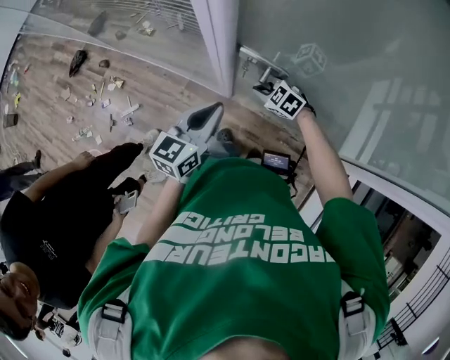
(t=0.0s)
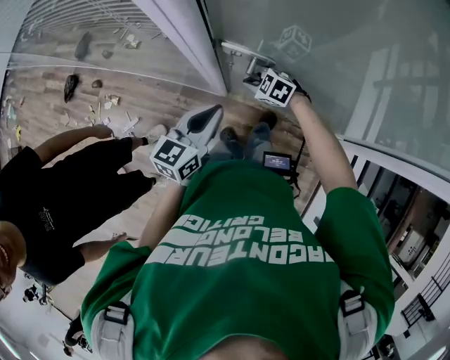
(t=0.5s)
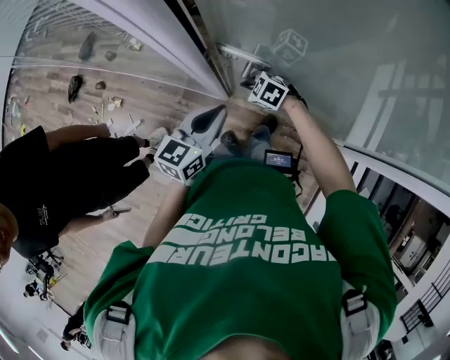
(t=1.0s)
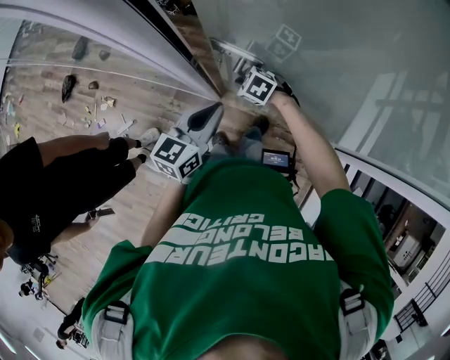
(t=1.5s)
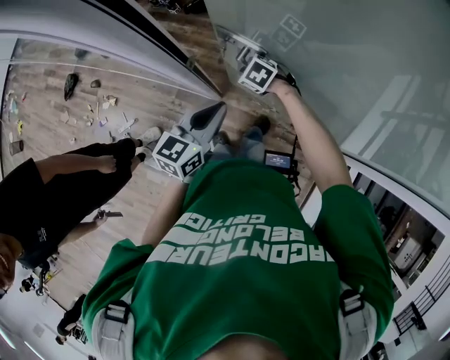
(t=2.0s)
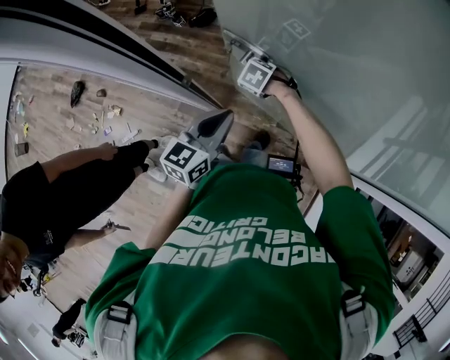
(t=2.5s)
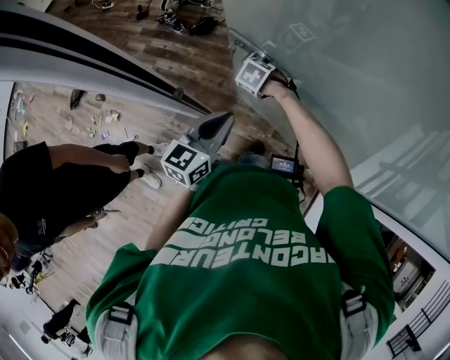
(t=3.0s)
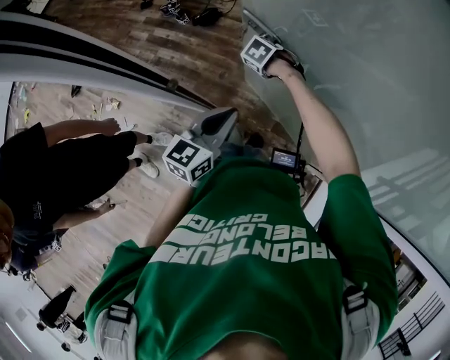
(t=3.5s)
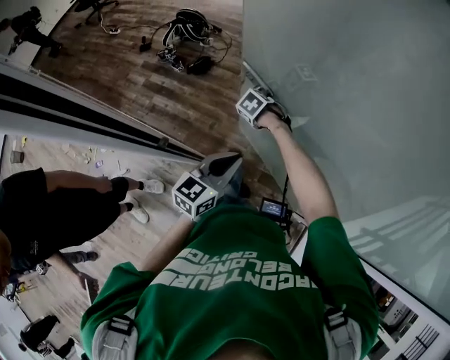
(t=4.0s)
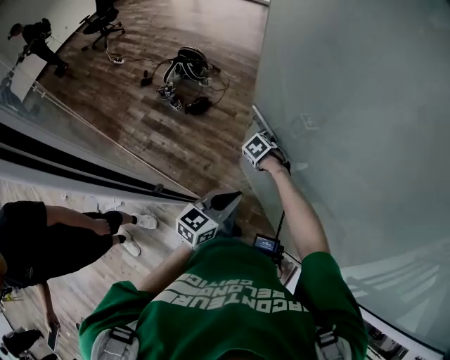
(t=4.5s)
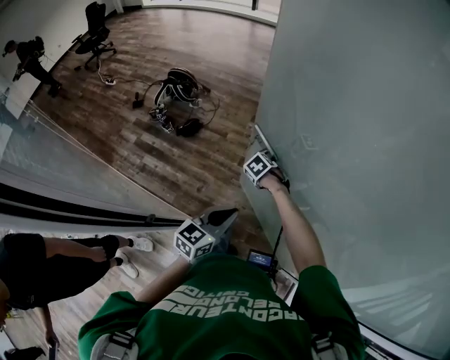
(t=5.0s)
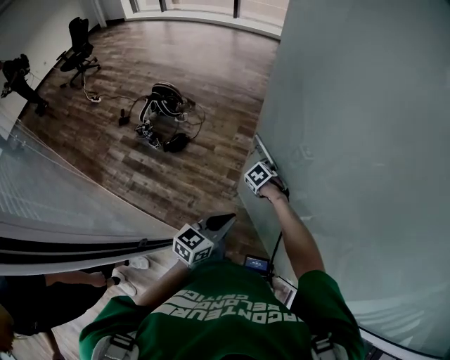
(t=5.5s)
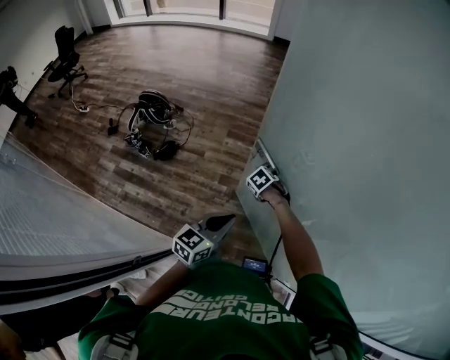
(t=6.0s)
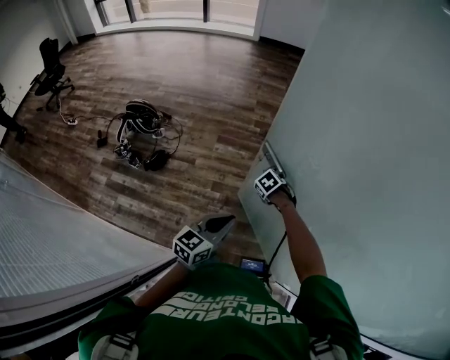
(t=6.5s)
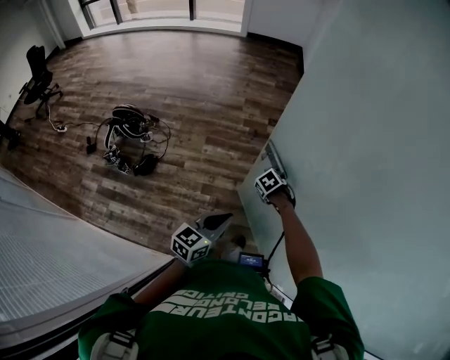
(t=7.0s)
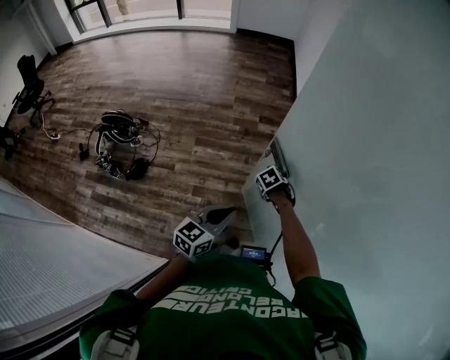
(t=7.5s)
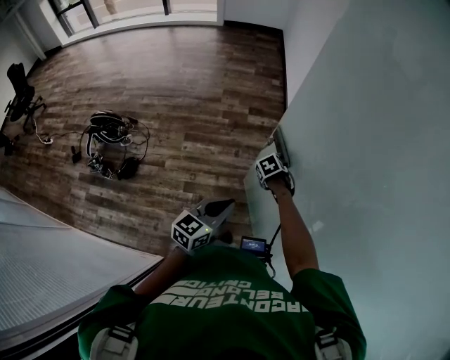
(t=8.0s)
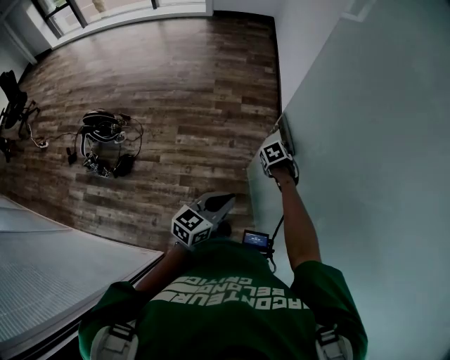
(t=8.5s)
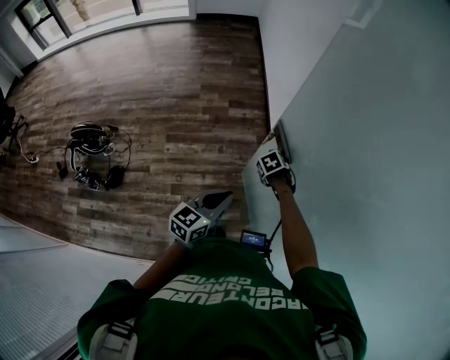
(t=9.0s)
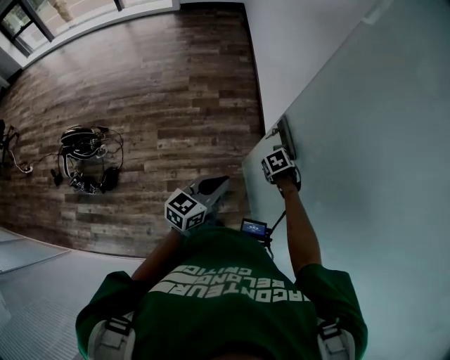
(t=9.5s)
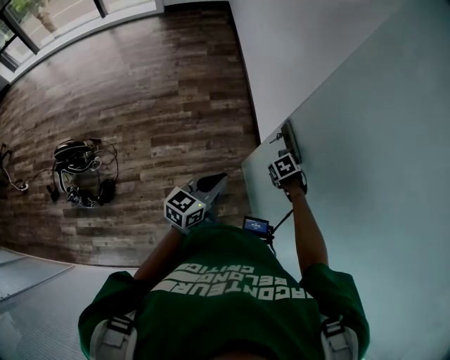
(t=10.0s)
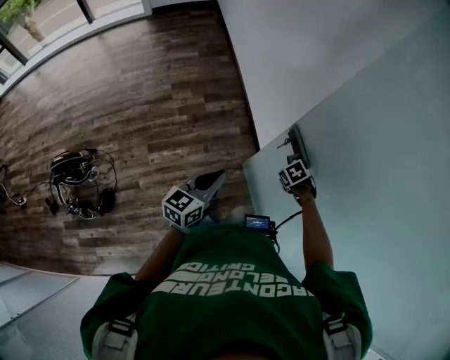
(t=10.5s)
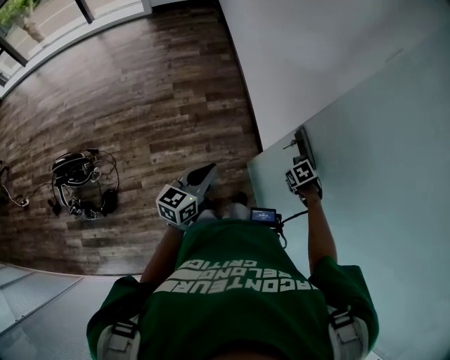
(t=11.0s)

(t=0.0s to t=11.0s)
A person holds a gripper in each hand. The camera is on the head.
t=0.0s - t=2.0s: The right gripper travels forward and to the right by about 10 cm. Meanwhile the left gripper goes about 10 cm to the right.
t=2.0s - t=3.5s: The right gripper ends up about 15 cm from where it was; the left gripper ends up some 10 cm from where it was.
t=3.5s - t=5.5s: The right gripper shifts by roughly 25 cm. The left gripper ends up roughly 20 cm from where it was.
t=5.5s - t=7.5s: The right gripper moves roughly 30 cm, and turns by roughly 30 degrees. Meanwhile the left gripper ends up approximately 25 cm from where it was.
t=7.5s - t=9.0s: The right gripper ends up roughly 15 cm from where it was. Meanwhile the left gripper moves approximately 15 cm.
t=9.0s - t=11.0s: The left gripper shifts by approximately 20 cm. Meanwhile the right gripper changes place by approximately 10 cm.

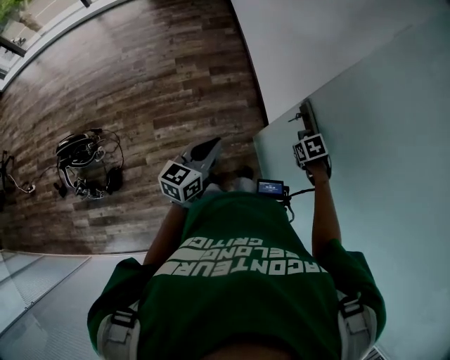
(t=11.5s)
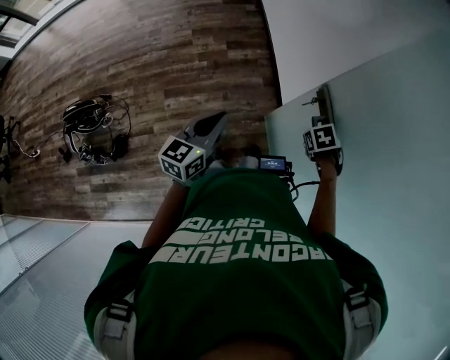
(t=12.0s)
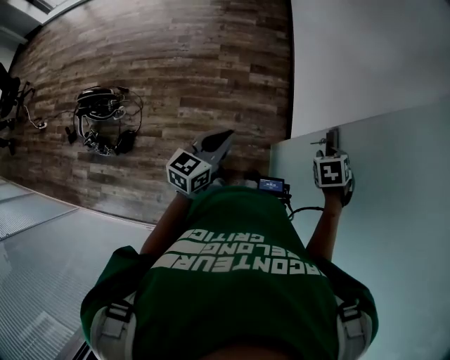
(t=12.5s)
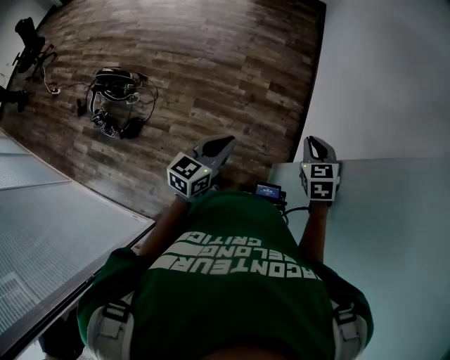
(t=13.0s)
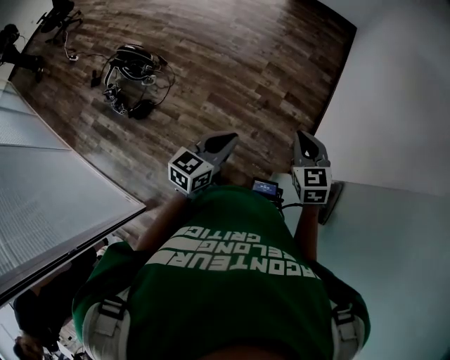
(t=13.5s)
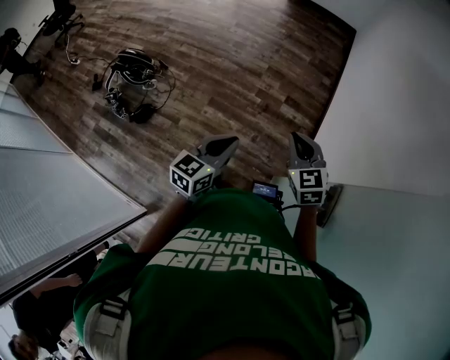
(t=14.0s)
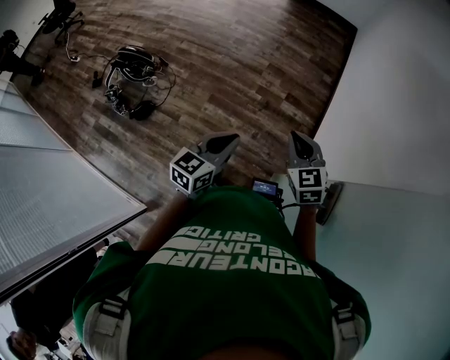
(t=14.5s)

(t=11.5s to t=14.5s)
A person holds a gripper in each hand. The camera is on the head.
t=11.5s - t=13.0s: The left gripper ends up about 5 cm from where it was, and swivels roughly 20 degrees; the right gripper changes place by some 25 cm, tips its fingers upward by some 40 degrees, and opens and closes again.
t=13.0s - t=14.5s: The right gripper shifts roughly 10 cm to the left, and turns by some 20 degrees.

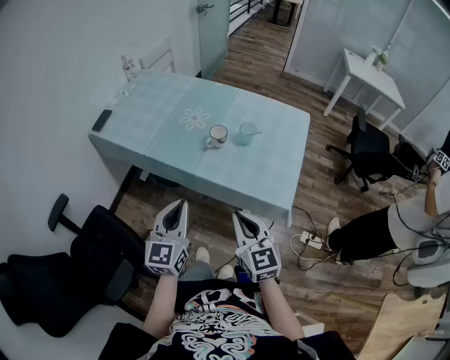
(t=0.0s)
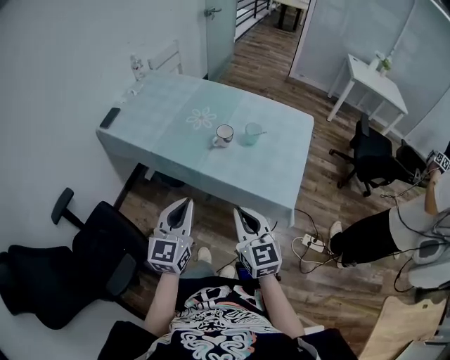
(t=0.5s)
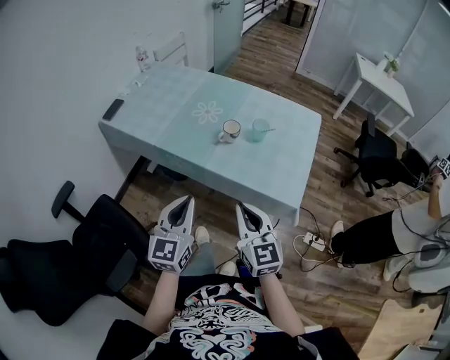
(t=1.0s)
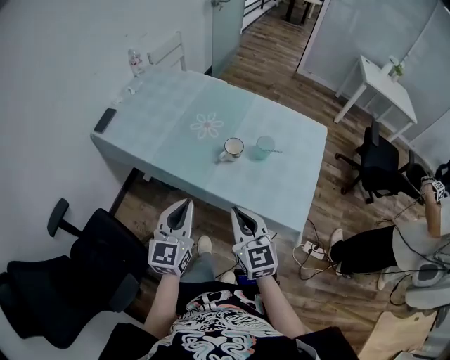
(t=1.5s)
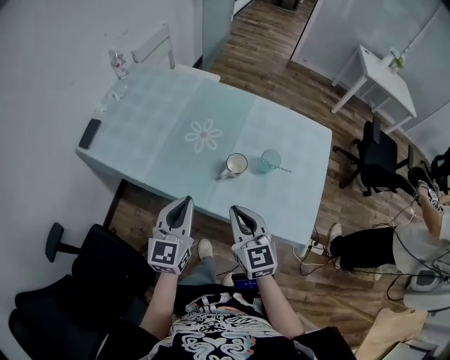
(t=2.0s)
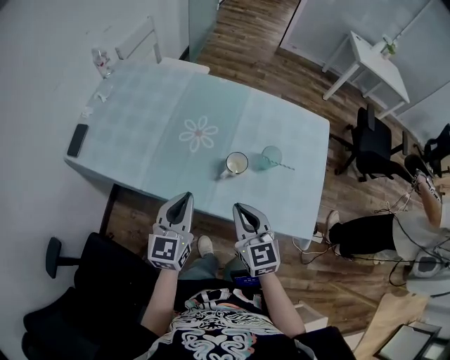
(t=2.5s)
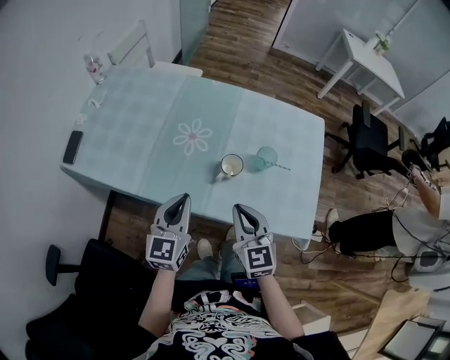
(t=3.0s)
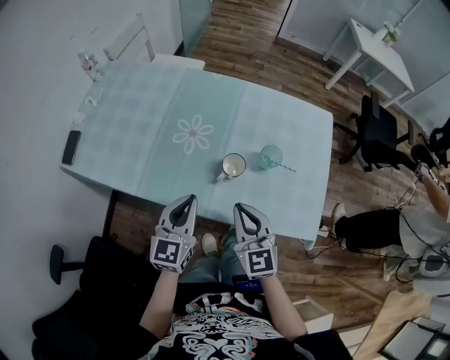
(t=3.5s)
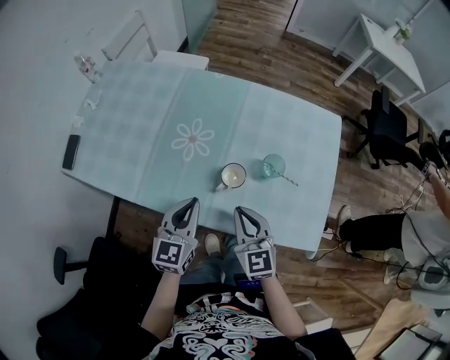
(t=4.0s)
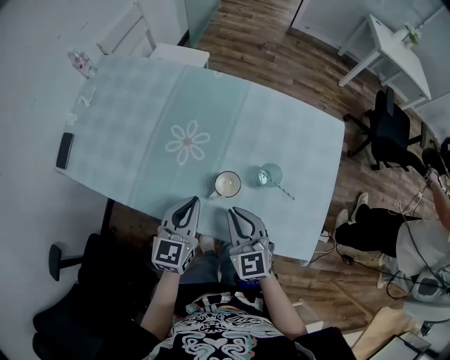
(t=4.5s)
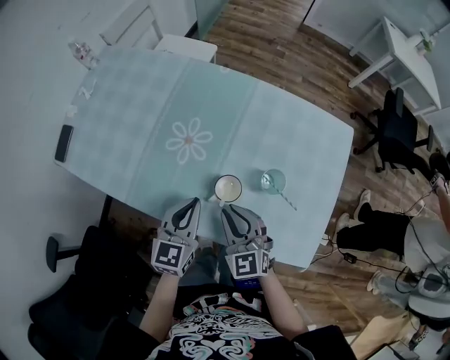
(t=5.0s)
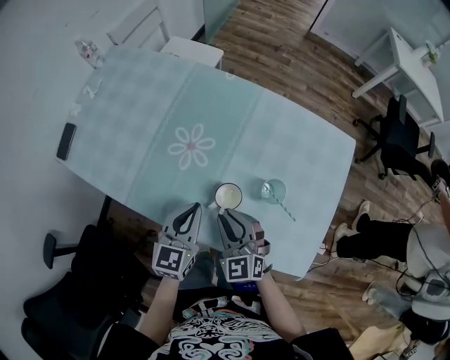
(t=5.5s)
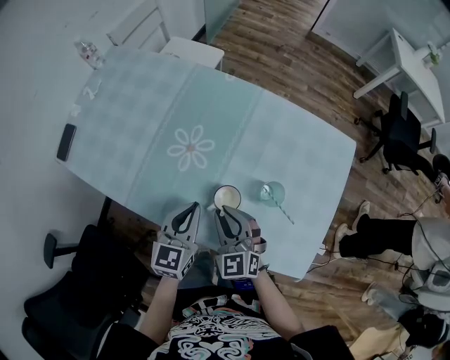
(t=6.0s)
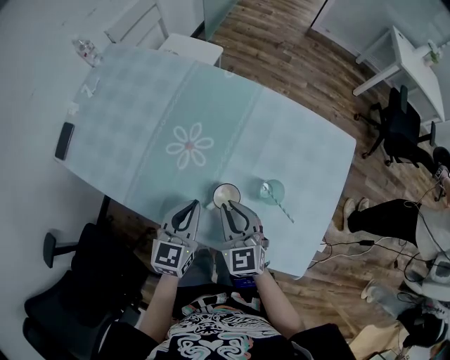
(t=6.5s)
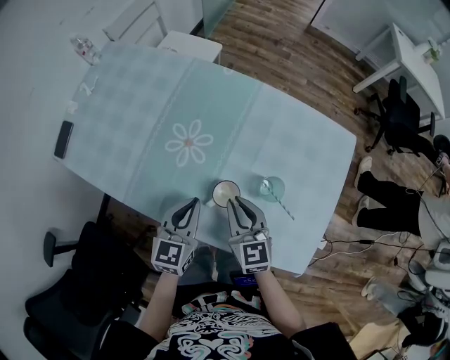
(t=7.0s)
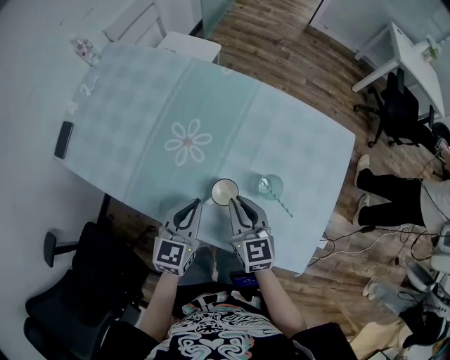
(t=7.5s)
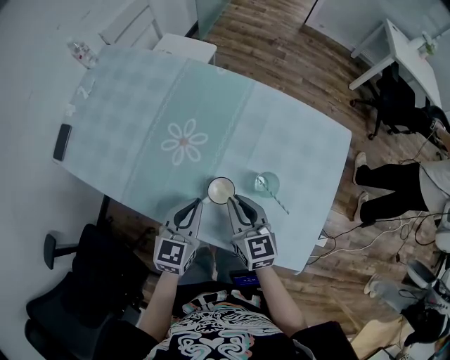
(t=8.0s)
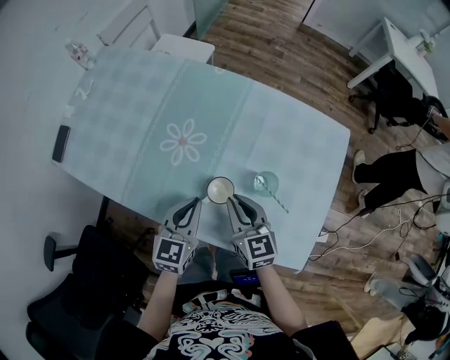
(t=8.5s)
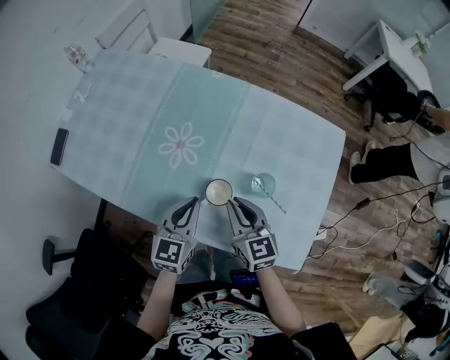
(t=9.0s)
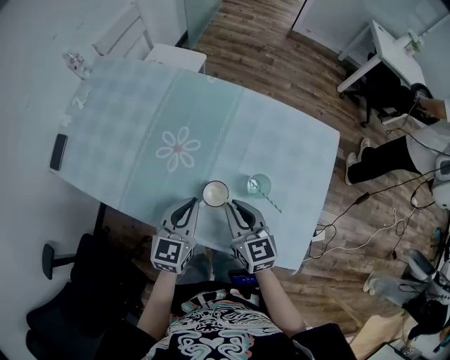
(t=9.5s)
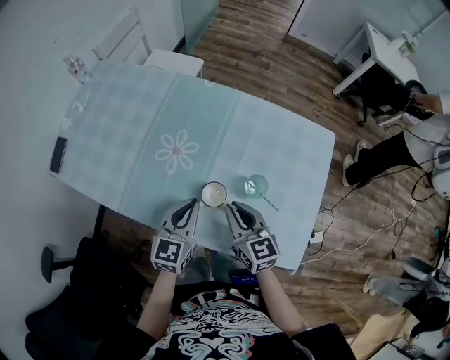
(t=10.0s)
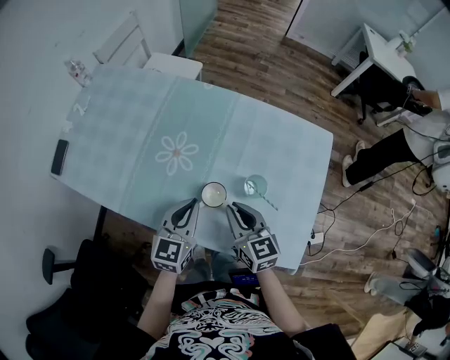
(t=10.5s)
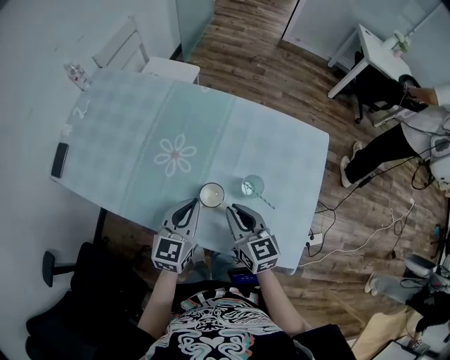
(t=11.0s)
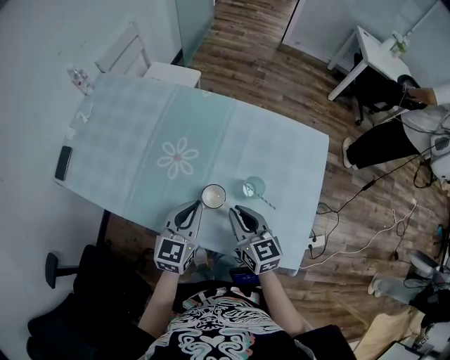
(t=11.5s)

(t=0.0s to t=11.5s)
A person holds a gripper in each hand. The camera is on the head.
t=0.0s - t=2.0s: The two grippers go roughly 20 cm forward.
t=2.0s - t=4.0s: Both grippers move forward and downward, some 10 cm.
t=4.0s - t=6.0s: The right gripper travels forward by about 5 cm, and rotates some 20 degrees; the left gripper ends up about 5 cm from where it was.
t=6.0s - t=7.5s: The right gripper heads to the right, covering about 5 cm, and rotates roughly 30 degrees.
t=7.5s - t=11.5s: The grippers make only small movements.

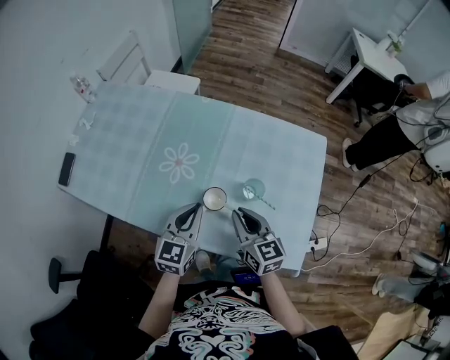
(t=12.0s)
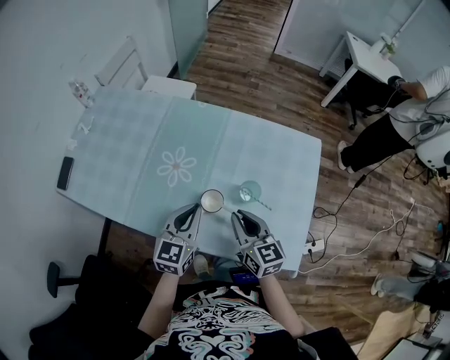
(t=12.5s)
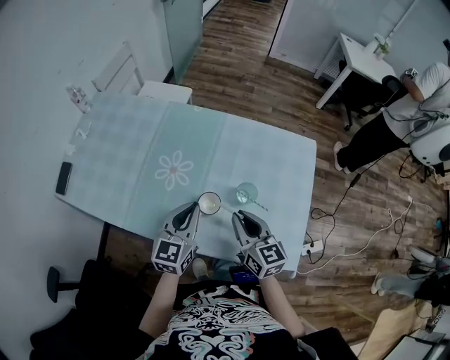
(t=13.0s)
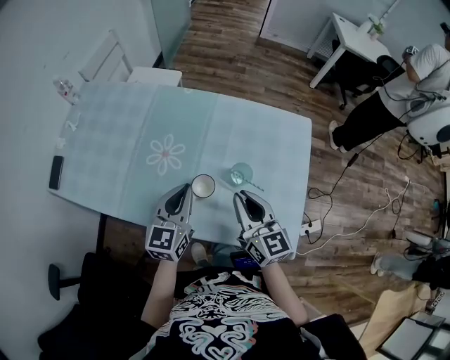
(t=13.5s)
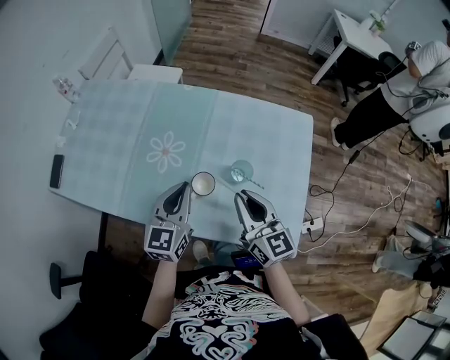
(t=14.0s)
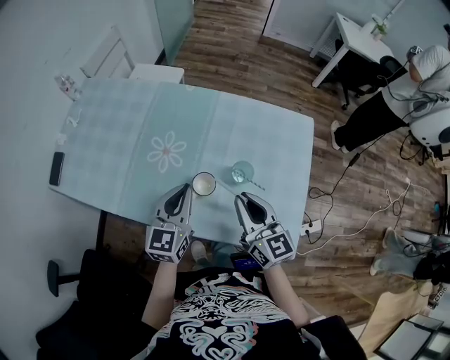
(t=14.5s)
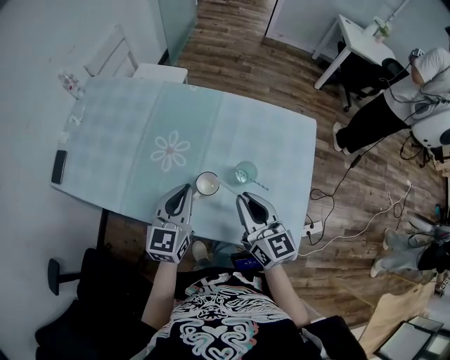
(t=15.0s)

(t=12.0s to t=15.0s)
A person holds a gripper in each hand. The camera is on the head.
t=12.0s - t=13.5s: The right gripper moves upward, roughly 5 cm.
t=13.5s - t=15.0s: Neither gripper changes place.
